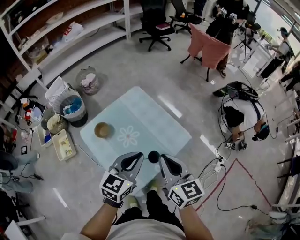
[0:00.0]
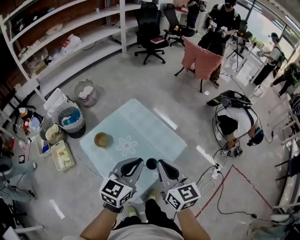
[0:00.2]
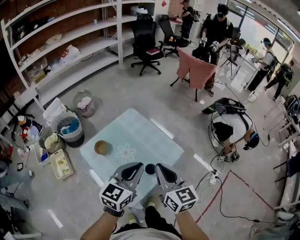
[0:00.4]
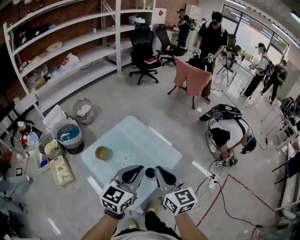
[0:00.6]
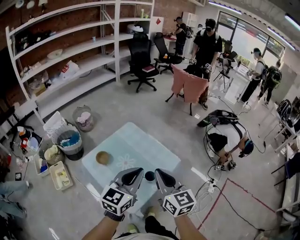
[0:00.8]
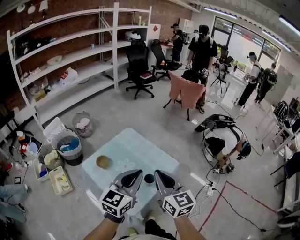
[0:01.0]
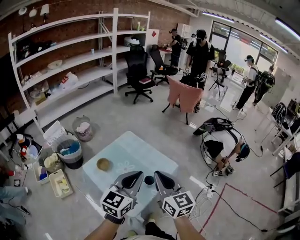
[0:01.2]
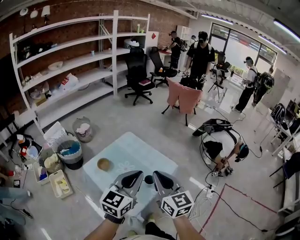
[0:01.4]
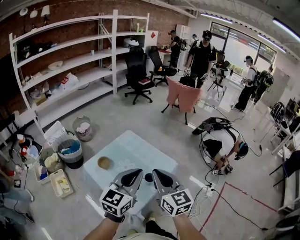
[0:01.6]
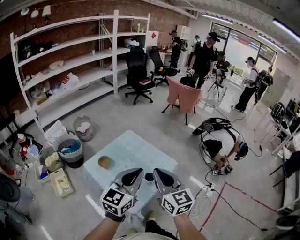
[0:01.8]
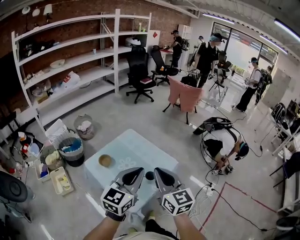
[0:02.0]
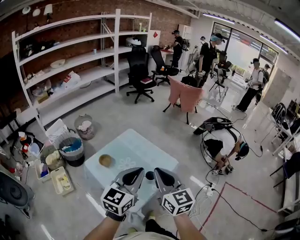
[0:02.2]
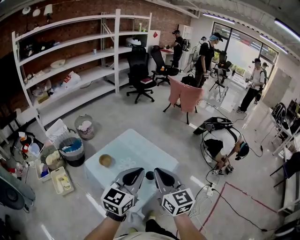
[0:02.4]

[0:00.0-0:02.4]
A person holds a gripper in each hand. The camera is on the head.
0:00.0 to 0:01.2: The two grippers go about 15 cm upward and backward.
0:01.2 to 0:02.4: There are only small adjustments of the grippers.

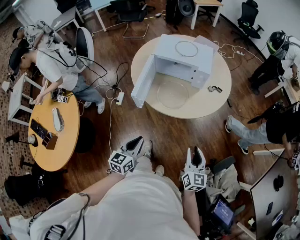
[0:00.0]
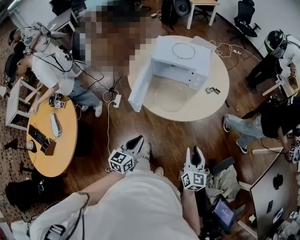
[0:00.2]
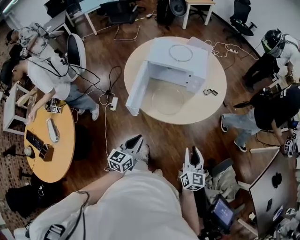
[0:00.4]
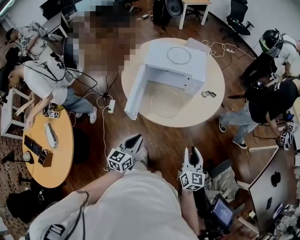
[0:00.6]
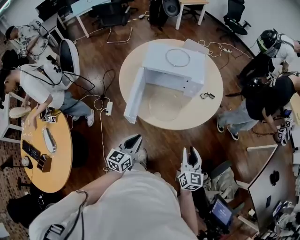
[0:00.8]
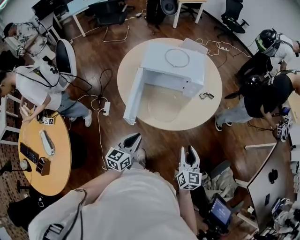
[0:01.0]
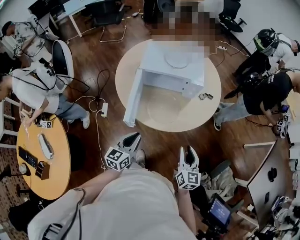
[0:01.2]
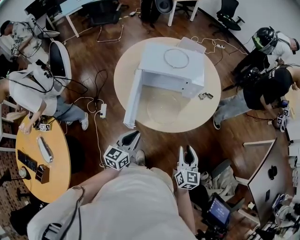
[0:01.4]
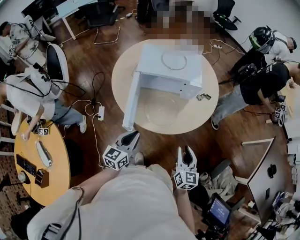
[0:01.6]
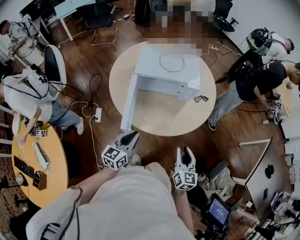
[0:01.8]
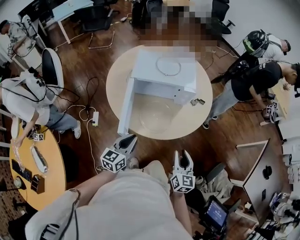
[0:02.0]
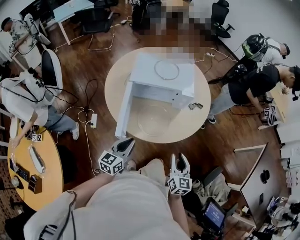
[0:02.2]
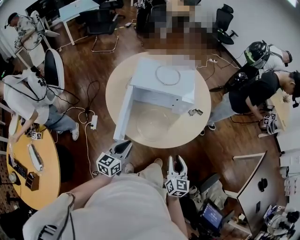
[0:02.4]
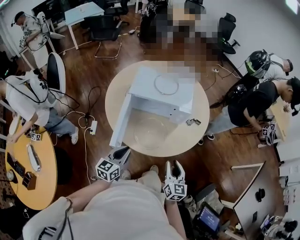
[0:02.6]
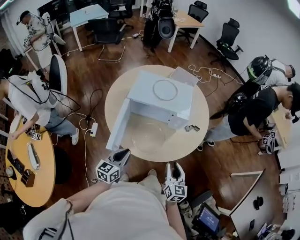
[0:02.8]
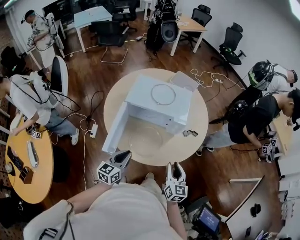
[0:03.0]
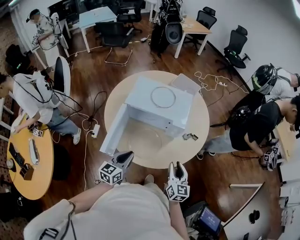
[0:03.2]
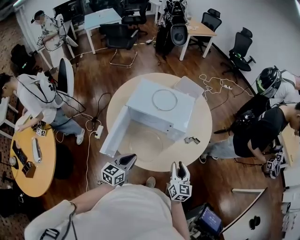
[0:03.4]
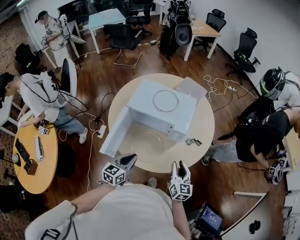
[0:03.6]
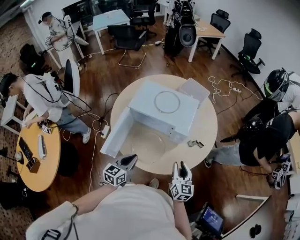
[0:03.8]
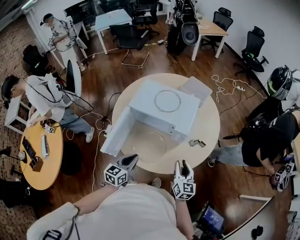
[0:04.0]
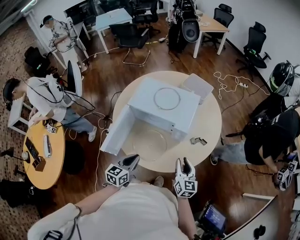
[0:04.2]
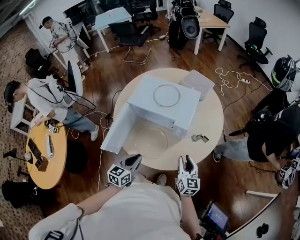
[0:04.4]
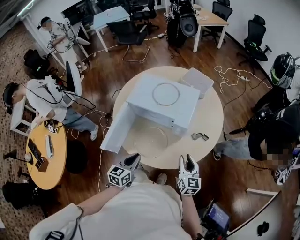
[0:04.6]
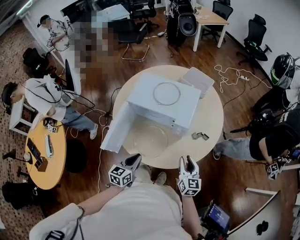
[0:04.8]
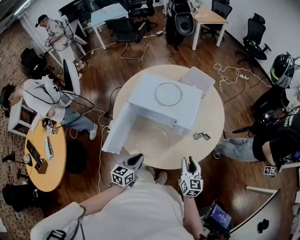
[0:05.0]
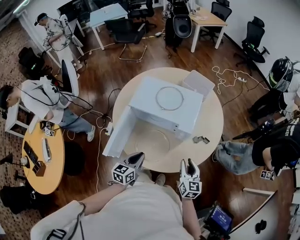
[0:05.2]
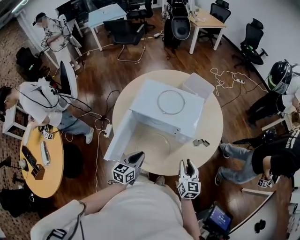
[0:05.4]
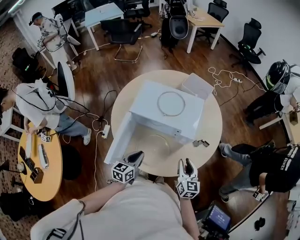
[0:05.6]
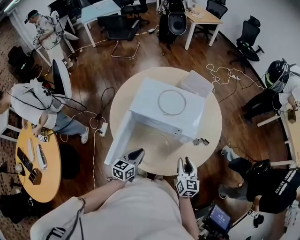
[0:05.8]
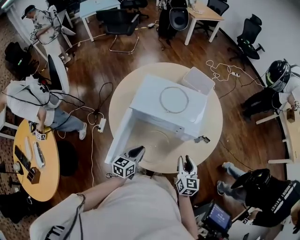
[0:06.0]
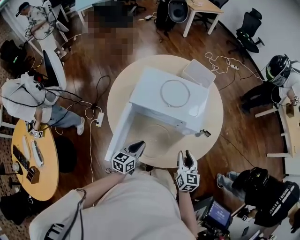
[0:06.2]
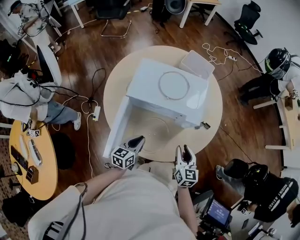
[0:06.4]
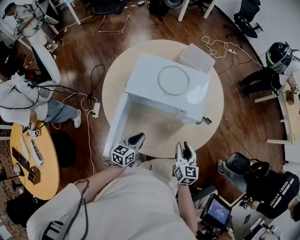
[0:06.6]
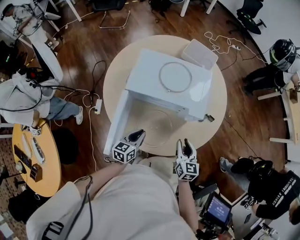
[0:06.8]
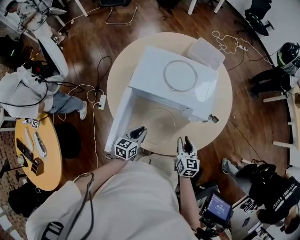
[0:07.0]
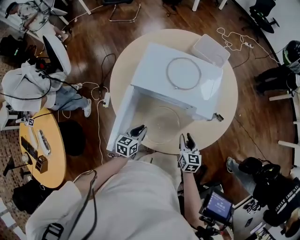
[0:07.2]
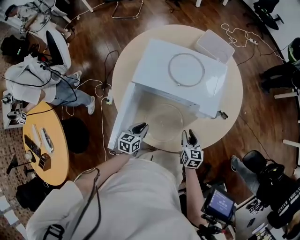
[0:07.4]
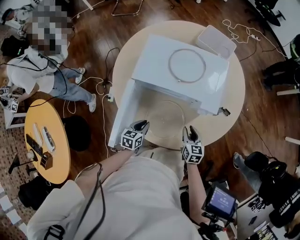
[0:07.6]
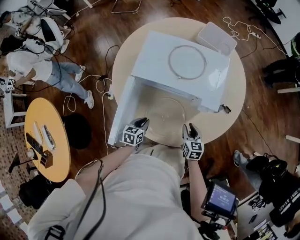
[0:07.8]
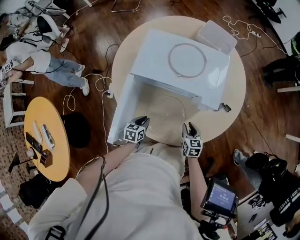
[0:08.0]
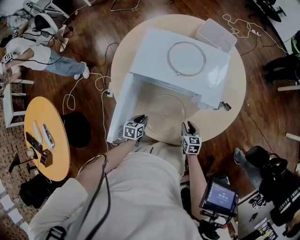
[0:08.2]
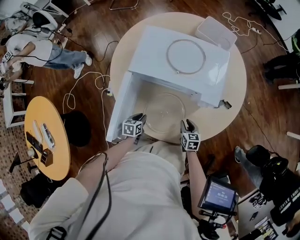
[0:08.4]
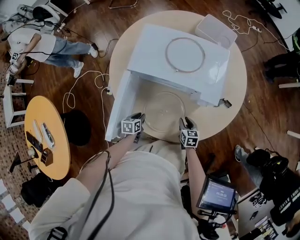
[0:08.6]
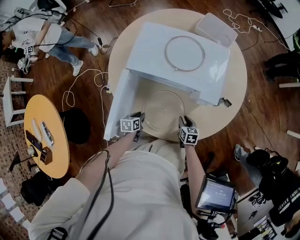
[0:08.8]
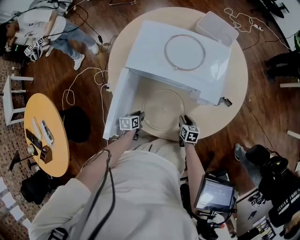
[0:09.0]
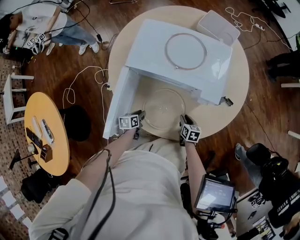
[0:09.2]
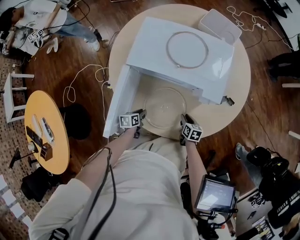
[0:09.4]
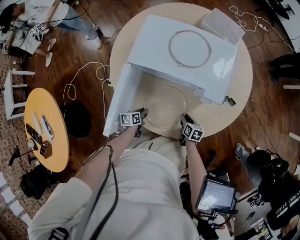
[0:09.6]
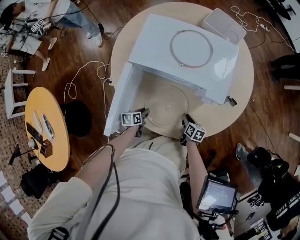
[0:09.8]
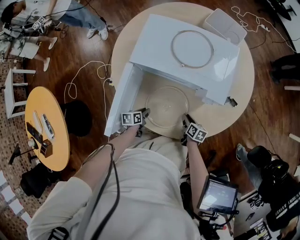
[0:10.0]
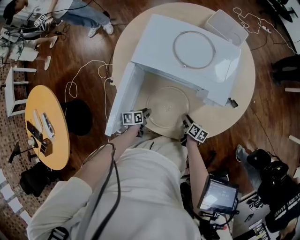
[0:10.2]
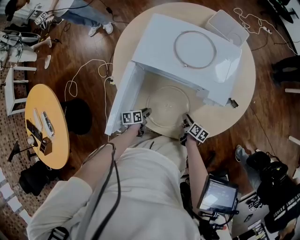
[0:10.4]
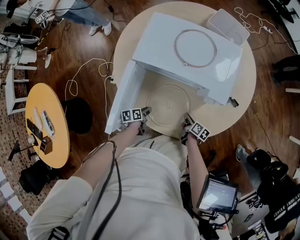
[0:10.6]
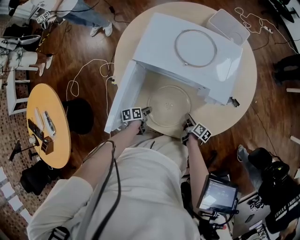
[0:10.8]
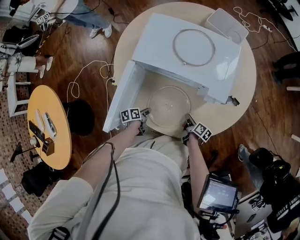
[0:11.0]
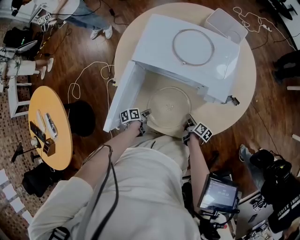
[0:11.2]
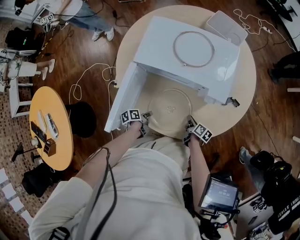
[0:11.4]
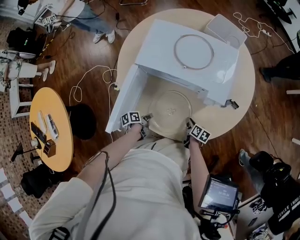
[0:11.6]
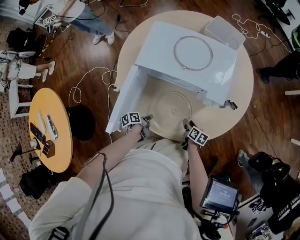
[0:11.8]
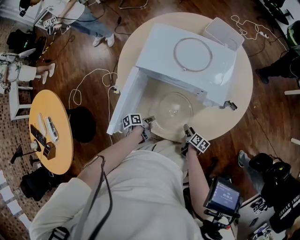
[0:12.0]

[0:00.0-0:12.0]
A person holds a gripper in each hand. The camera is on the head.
0:00.0 to 0:01.6: The right gripper ends up approximately 15 cm from where it was.
0:01.6 to 0:03.0: The right gripper ends up roughly 15 cm from where it was.
0:03.0 to 0:04.4: The right gripper ends up approximately 15 cm from where it was.
0:04.4 to 0:06.0: The right gripper shifts by approximately 10 cm.
0:06.0 to 0:07.6: The right gripper travels downward by approximately 15 cm.
0:07.6 to 0:09.0: The right gripper shifts approximately 15 cm downward.
0:09.0 to 0:10.4: The right gripper rotates approximately 30 degrees.
0:10.4 to 0:12.0: The right gripper shifts by approximately 5 cm, and opens its fingers.

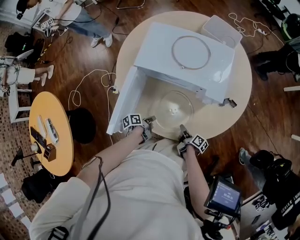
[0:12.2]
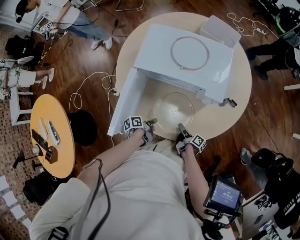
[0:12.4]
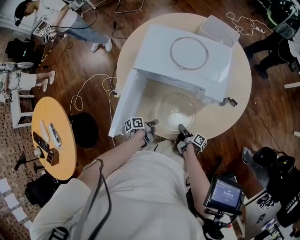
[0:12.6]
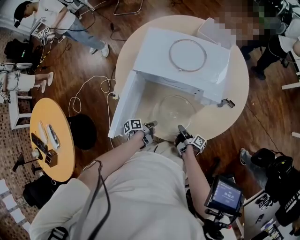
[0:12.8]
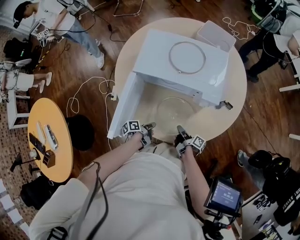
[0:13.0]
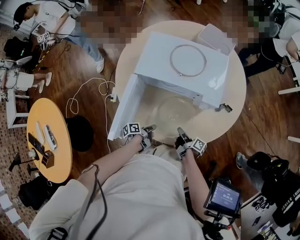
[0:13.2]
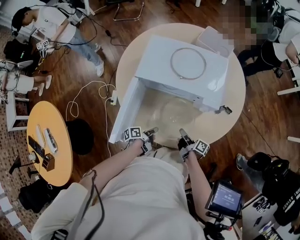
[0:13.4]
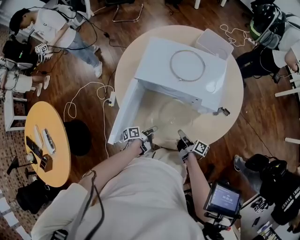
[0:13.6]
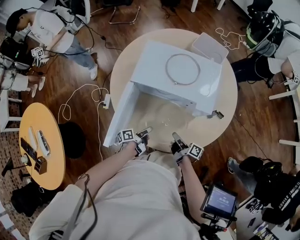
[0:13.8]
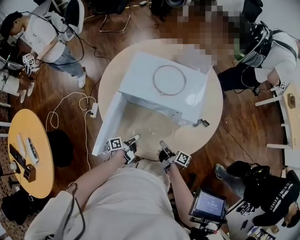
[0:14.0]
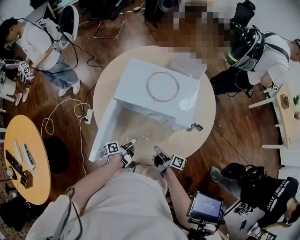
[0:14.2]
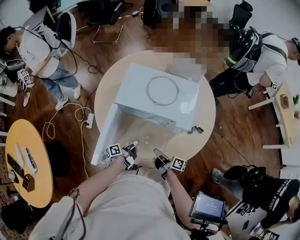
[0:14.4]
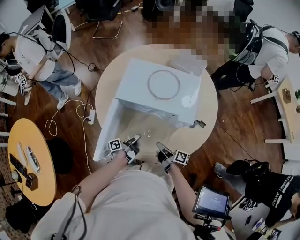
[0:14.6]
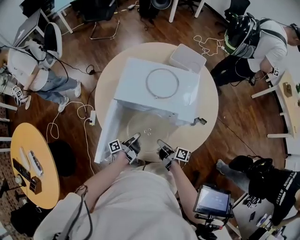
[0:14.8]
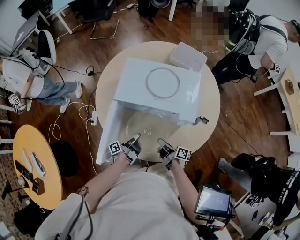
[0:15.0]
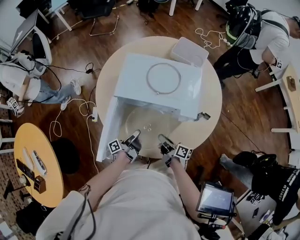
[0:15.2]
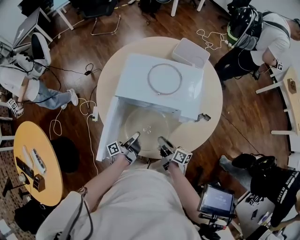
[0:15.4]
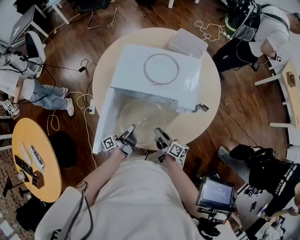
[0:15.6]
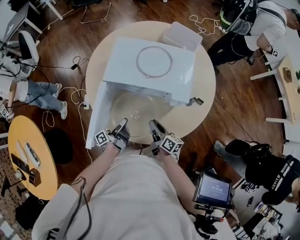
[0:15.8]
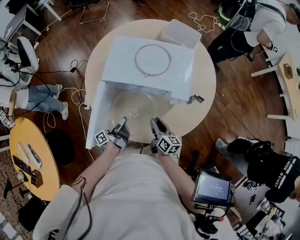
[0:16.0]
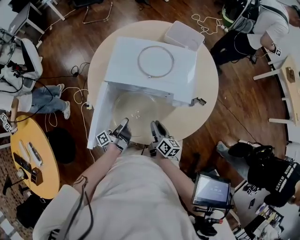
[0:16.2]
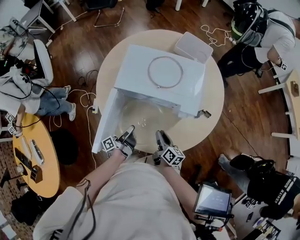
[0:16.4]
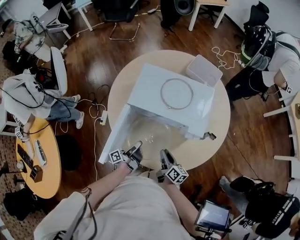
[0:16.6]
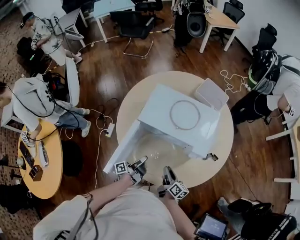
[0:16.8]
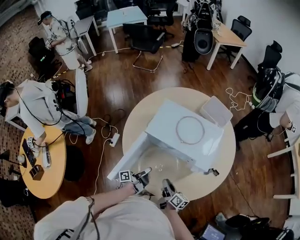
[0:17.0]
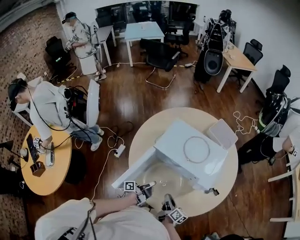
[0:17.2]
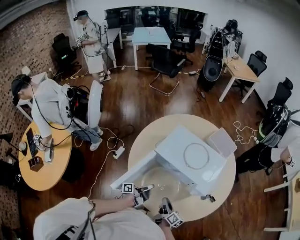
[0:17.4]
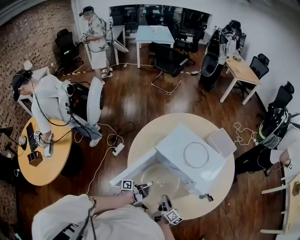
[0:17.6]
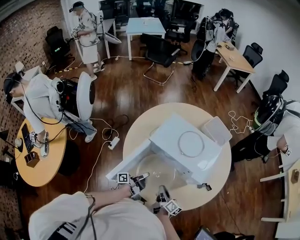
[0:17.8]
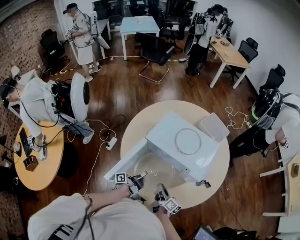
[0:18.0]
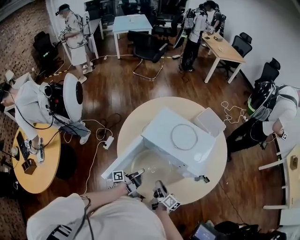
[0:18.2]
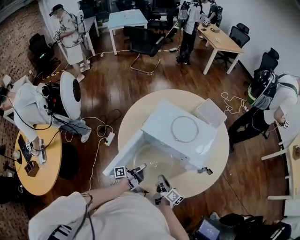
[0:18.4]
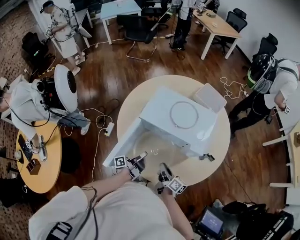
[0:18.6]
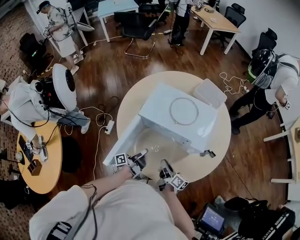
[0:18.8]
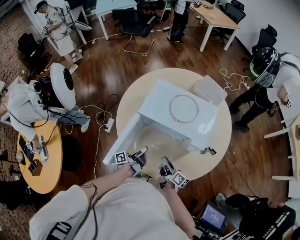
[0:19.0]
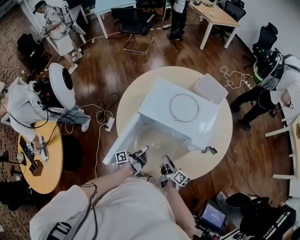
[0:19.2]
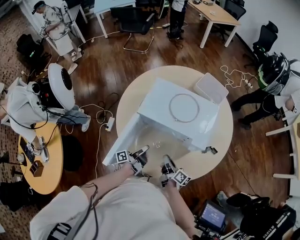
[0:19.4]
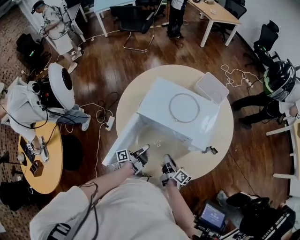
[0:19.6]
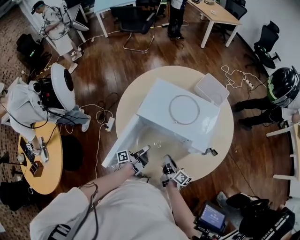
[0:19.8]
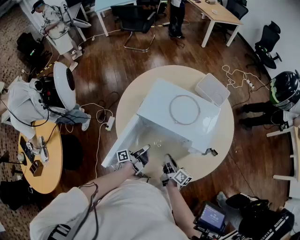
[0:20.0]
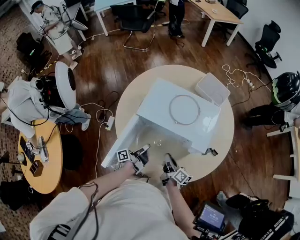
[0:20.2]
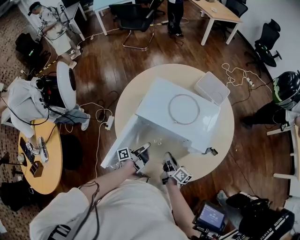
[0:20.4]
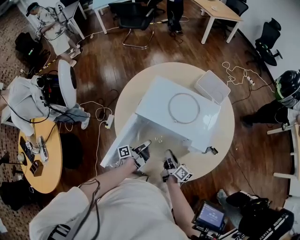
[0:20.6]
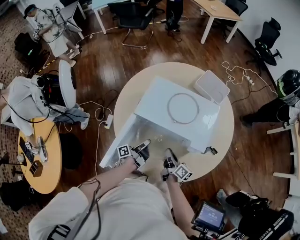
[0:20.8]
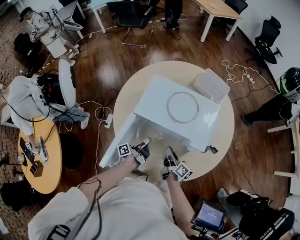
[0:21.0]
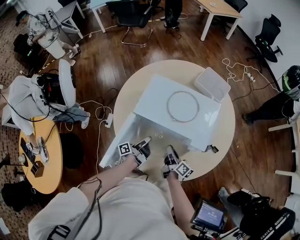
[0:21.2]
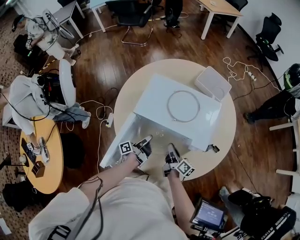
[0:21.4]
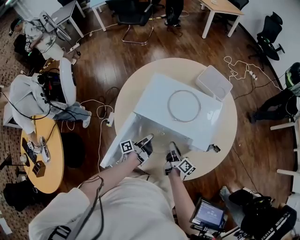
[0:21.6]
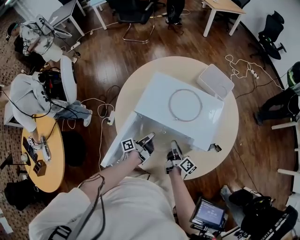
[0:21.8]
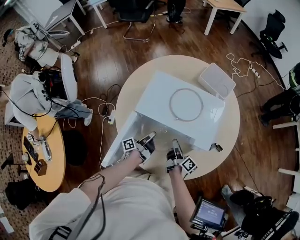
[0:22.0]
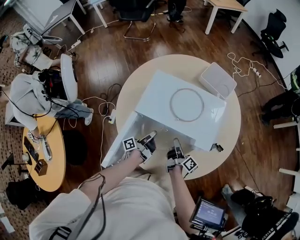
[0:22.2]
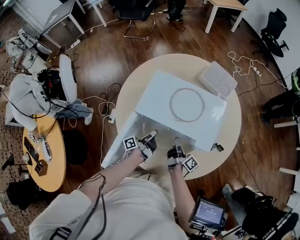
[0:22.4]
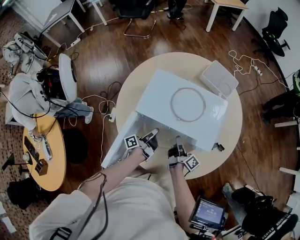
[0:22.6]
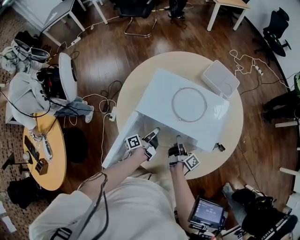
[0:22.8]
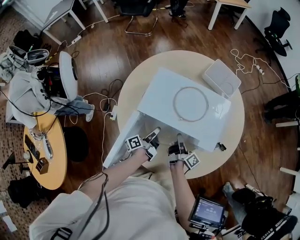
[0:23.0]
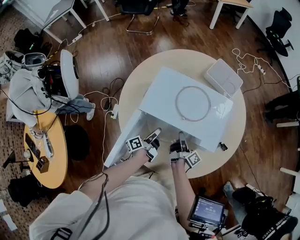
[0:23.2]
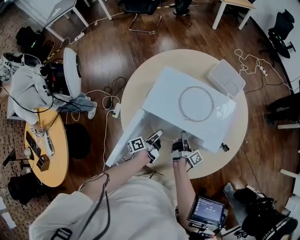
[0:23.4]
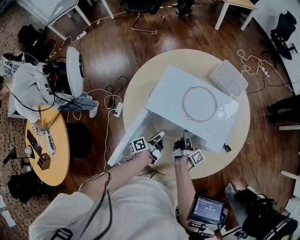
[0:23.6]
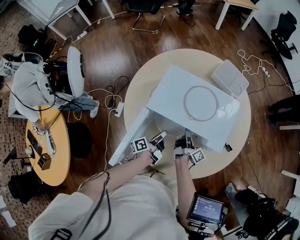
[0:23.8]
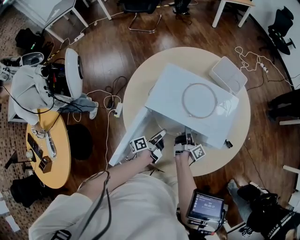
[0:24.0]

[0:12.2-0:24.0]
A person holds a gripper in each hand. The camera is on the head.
0:12.2 to 0:13.6: The right gripper moves upward, roughly 10 cm, changes its angle by approximately 20 degrees, and closes its fingers.
0:13.6 to 0:15.2: The right gripper travels upward by some 5 cm.
0:19.6 to 0:21.0: The right gripper shifts by some 5 cm.
0:21.0 to 0:22.6: The right gripper shifts by some 5 cm.
